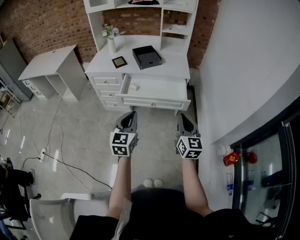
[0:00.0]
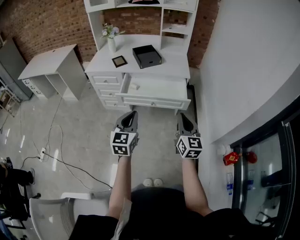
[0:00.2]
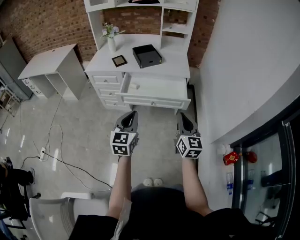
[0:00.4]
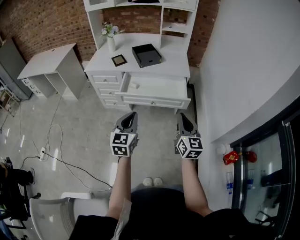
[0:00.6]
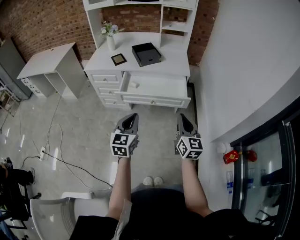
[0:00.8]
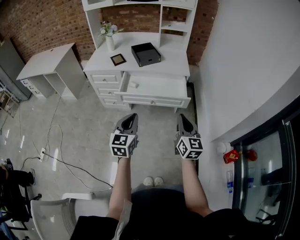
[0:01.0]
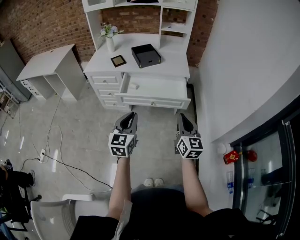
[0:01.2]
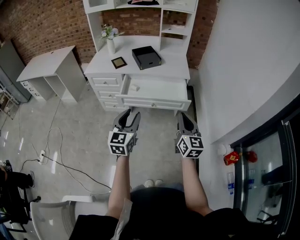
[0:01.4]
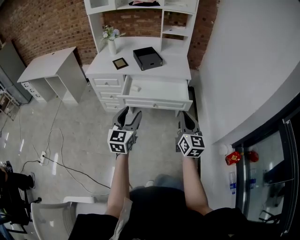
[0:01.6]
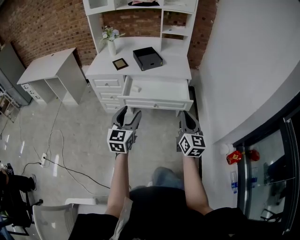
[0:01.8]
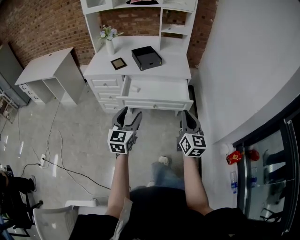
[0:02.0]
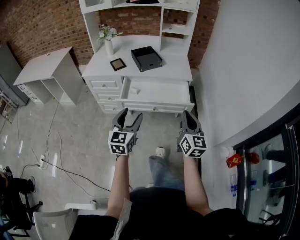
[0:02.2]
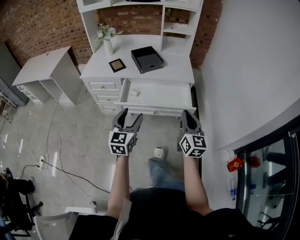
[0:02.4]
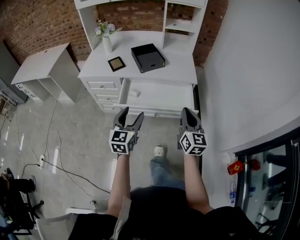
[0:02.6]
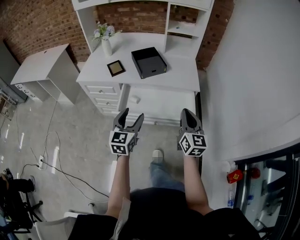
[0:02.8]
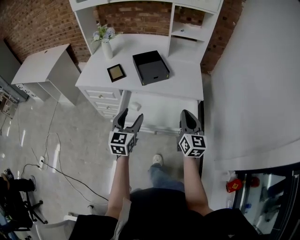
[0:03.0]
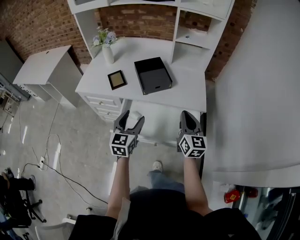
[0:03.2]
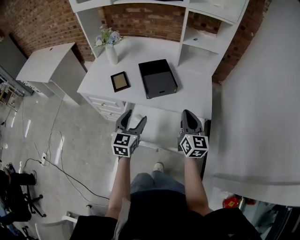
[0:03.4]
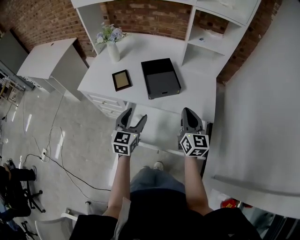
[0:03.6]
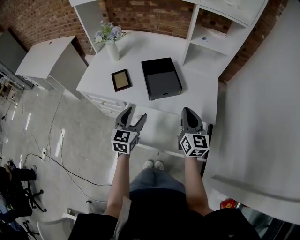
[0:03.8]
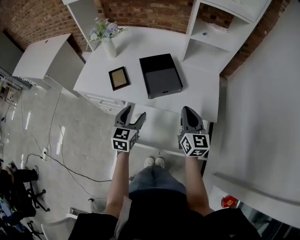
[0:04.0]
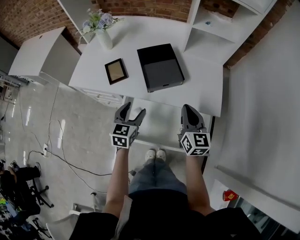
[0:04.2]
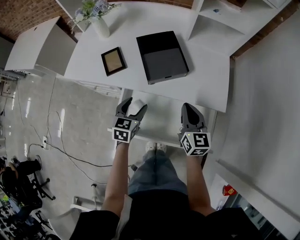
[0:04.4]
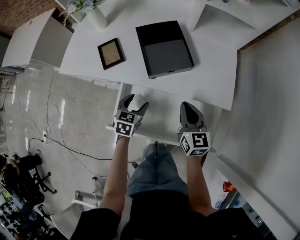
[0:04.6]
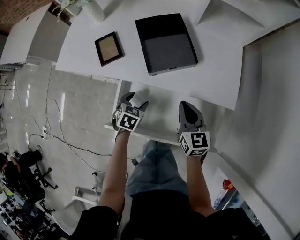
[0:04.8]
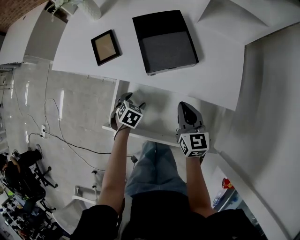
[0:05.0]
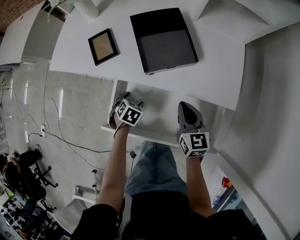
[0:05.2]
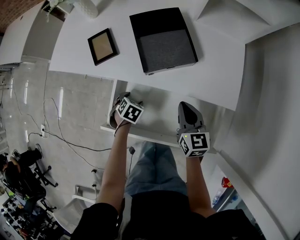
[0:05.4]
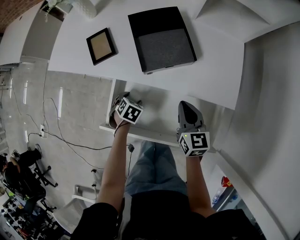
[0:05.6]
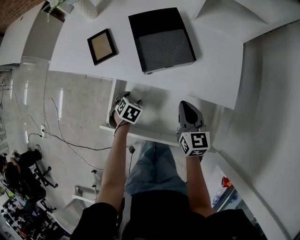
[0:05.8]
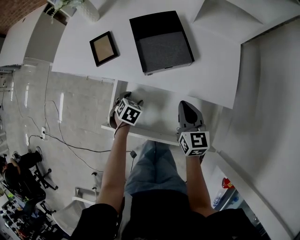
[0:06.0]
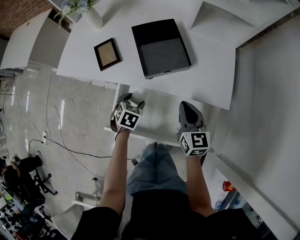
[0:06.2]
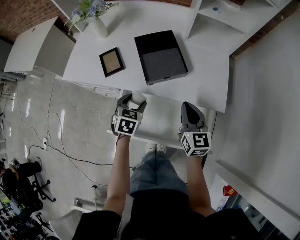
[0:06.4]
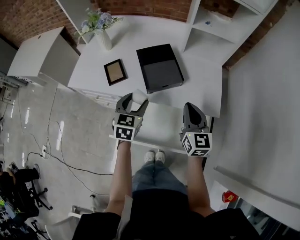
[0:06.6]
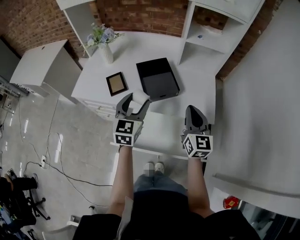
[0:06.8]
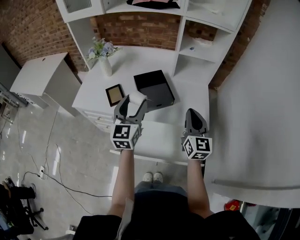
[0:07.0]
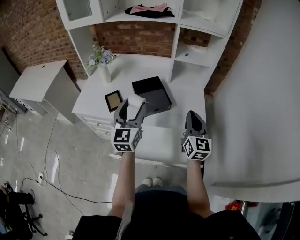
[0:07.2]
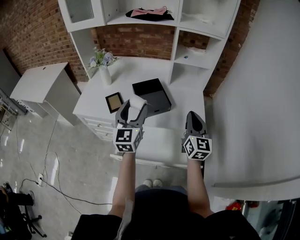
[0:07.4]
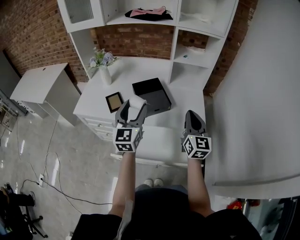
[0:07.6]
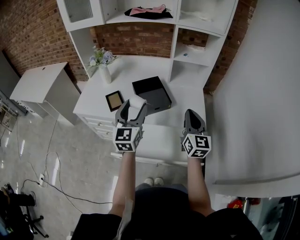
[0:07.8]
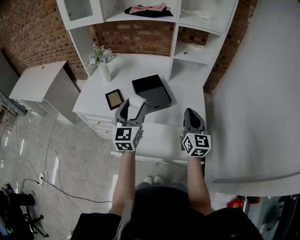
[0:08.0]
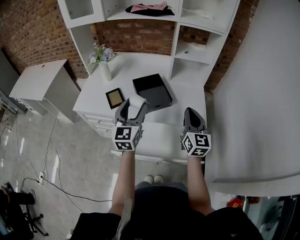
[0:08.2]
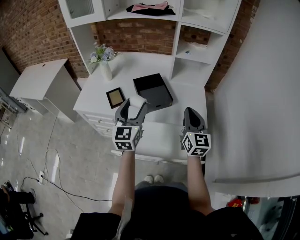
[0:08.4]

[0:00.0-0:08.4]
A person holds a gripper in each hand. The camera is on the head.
0:00.0 to 0:01.4: The left gripper opens up.
0:01.4 to 0:02.8: The grippers both shift forward by some 20 cm. The left gripper opens up.
0:02.8 to 0:04.2: Both grippers move forward, about 25 cm.
0:04.2 to 0:05.6: The right gripper shifts about 15 cm downward, while the left gripper goes approximately 25 cm downward, and points its fingers roughly 50 degrees further downward.
0:05.6 to 0:07.0: The right gripper travels upward by roughly 25 cm, and swivels roughly 30 degrees; the left gripper shifts some 40 cm upward, and points its fingers roughly 70 degrees further upward.
0:07.0 to 0:08.4: The grippers make only small movements.

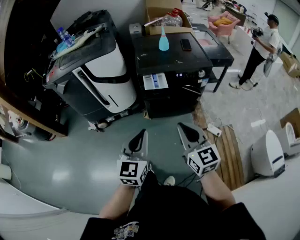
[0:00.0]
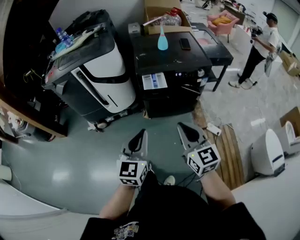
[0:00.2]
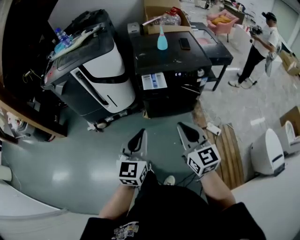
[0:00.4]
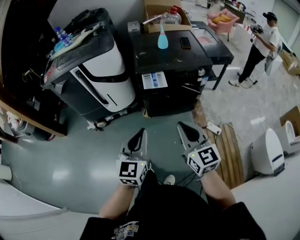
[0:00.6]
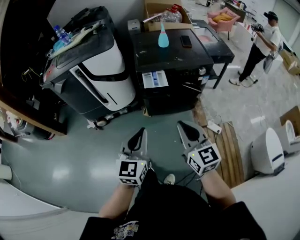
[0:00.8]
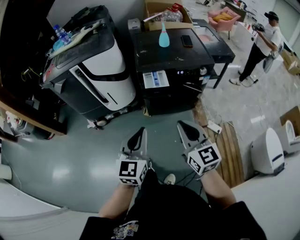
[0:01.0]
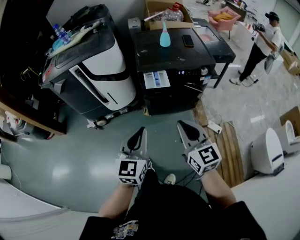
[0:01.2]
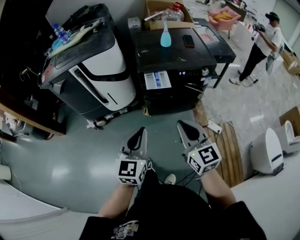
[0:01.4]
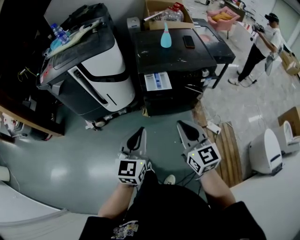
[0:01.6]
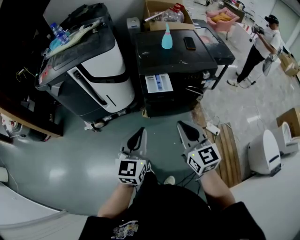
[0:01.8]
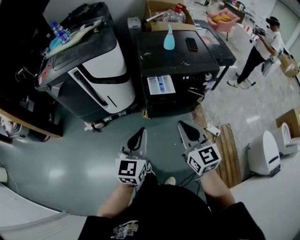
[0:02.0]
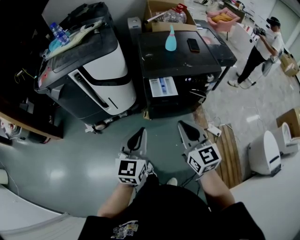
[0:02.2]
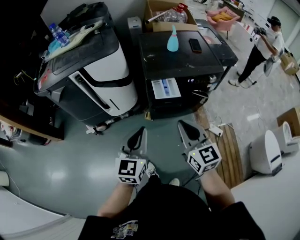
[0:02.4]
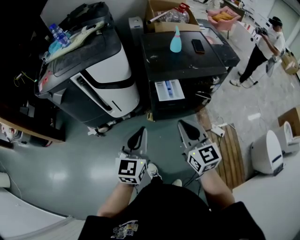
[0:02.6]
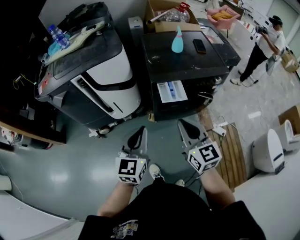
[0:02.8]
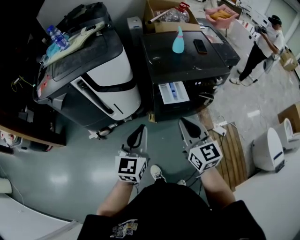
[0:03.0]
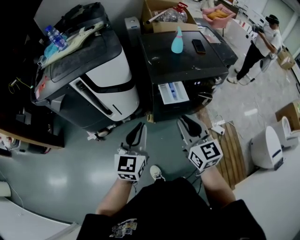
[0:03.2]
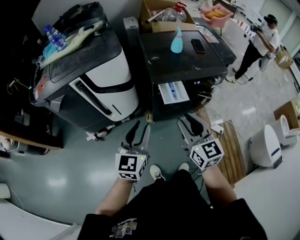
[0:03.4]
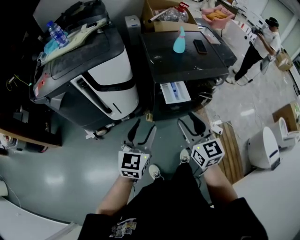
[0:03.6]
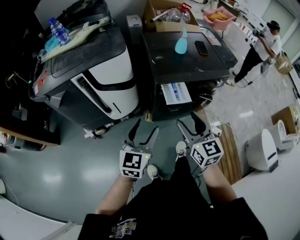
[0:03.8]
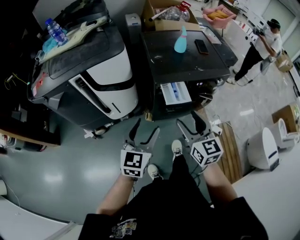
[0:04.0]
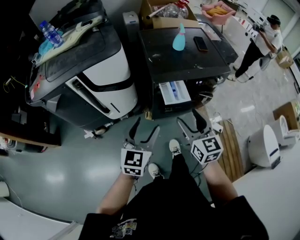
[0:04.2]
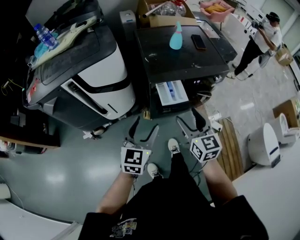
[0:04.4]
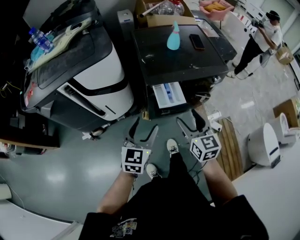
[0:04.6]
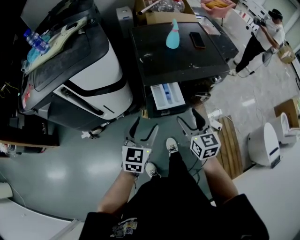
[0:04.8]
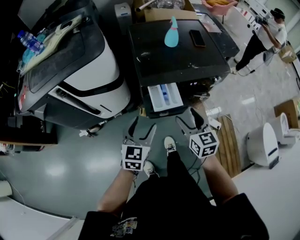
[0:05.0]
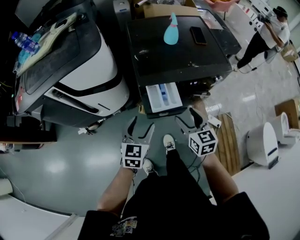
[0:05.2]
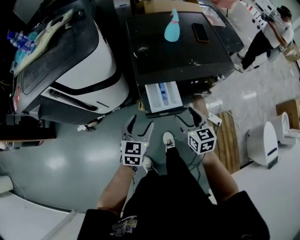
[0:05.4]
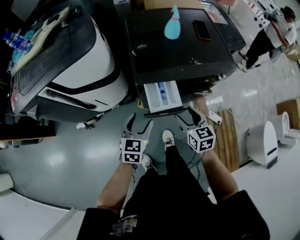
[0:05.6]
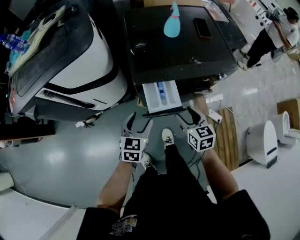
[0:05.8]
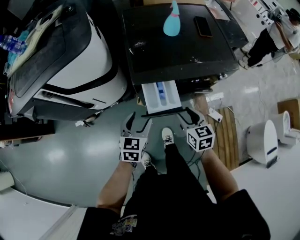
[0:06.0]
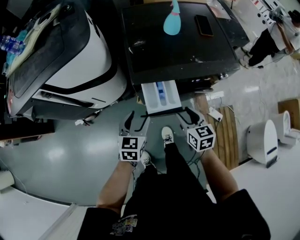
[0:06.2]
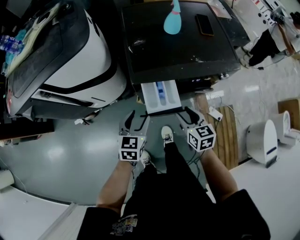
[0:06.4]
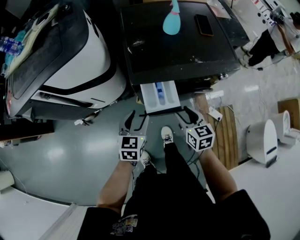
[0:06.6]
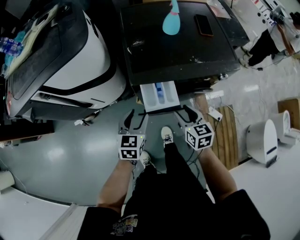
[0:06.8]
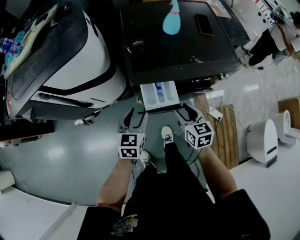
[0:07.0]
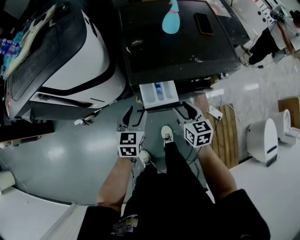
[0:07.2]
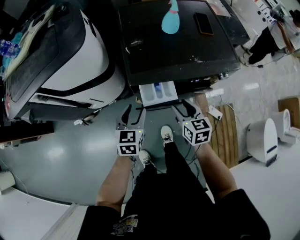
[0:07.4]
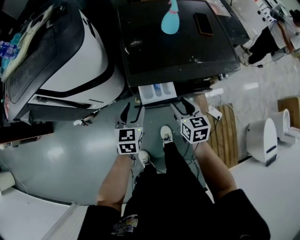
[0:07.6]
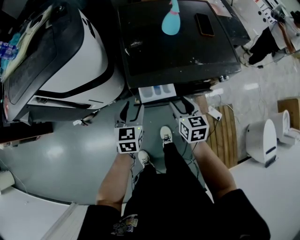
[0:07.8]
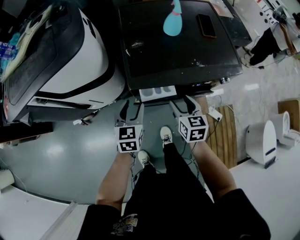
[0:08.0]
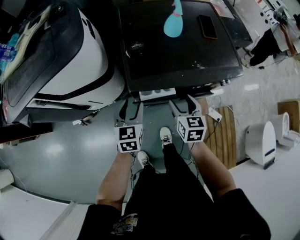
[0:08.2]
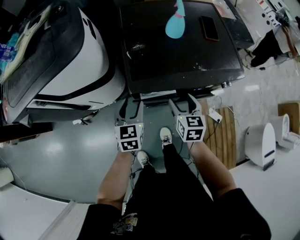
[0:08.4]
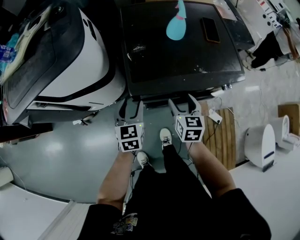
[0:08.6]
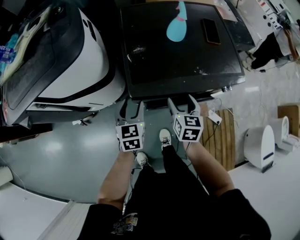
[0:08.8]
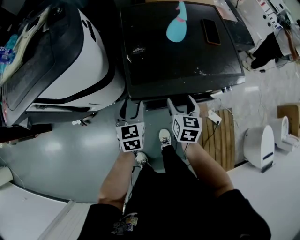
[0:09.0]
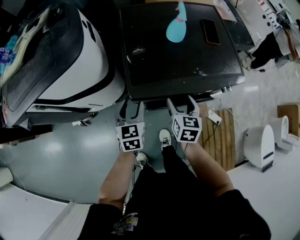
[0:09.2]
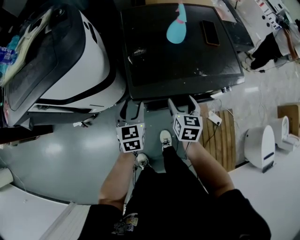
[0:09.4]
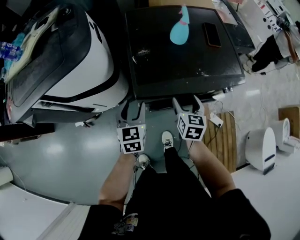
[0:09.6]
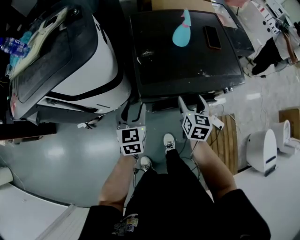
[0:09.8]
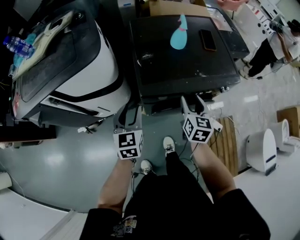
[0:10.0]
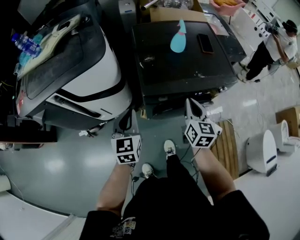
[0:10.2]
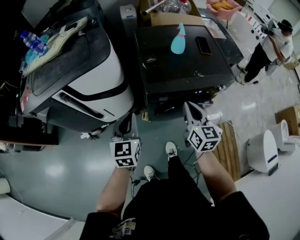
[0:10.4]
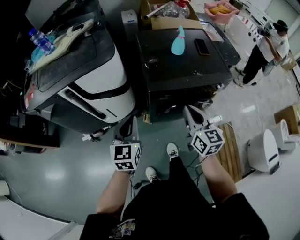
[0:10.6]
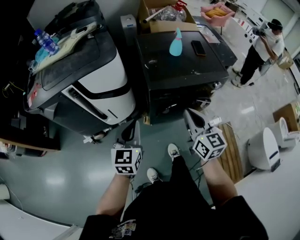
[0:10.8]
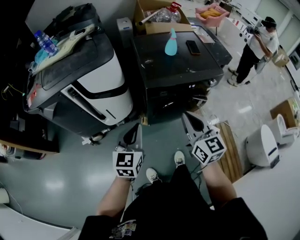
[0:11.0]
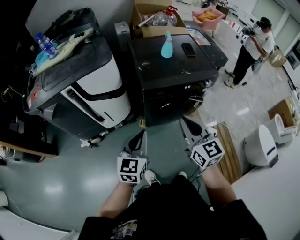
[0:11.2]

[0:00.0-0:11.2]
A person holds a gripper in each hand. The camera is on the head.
0:00.0 to 0:01.6: Both grippers travel together forward, about 5 cm.
0:01.6 to 0:03.2: The grippers both shift forward and to the left by some 20 cm.
0:03.2 to 0:04.8: The two grippers go approximately 15 cm forward, downward and to the right. The left gripper opens up; the right gripper opens.
0:04.8 to 0:06.4: The two grippers go roughly 15 cm downward and forward.
0:06.4 to 0:08.0: The two grippers go some 10 cm forward.
0:08.0 to 0:09.6: The right gripper shifts by roughly 5 cm.
0:09.6 to 0:11.2: The two grippers go approximately 35 cm backward and upward. The left gripper changes its angle by roughly 20 degrees, and closes its fingers, while the right gripper swivels roughly 30 degrees, and closes.

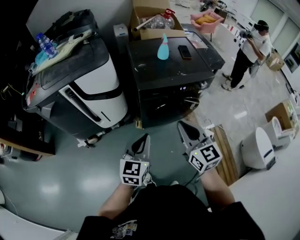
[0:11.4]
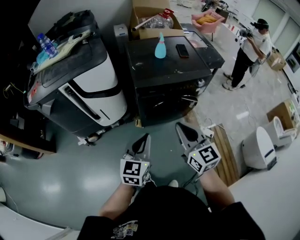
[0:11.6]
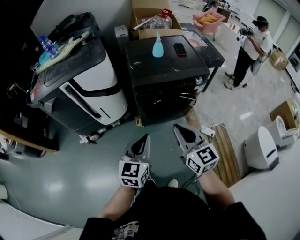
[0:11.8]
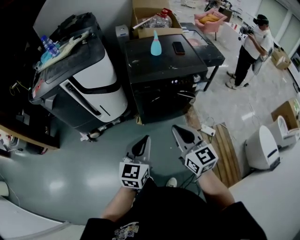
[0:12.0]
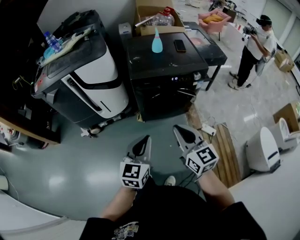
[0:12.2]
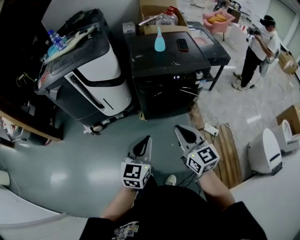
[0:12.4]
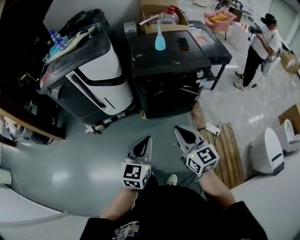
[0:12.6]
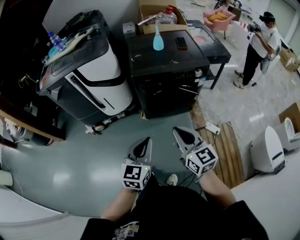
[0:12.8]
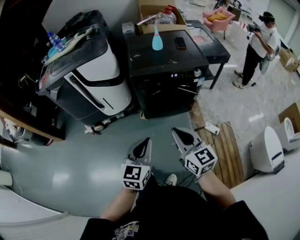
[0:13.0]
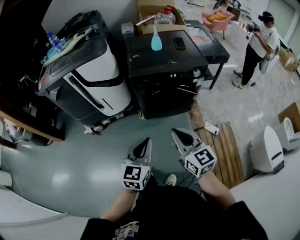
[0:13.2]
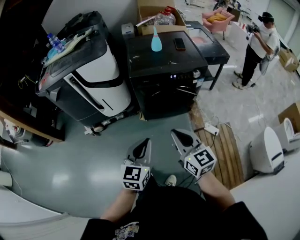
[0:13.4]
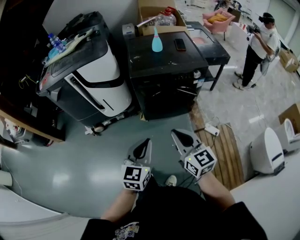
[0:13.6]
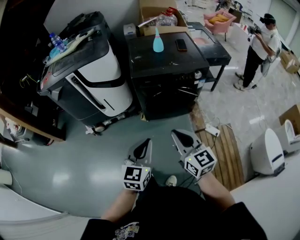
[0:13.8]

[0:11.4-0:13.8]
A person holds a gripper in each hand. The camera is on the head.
0:11.4 to 0:12.6: Both grippers move backward and to the right, some 20 cm.
0:12.6 to 0:13.8: The grippers make only small movements.

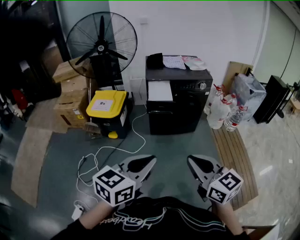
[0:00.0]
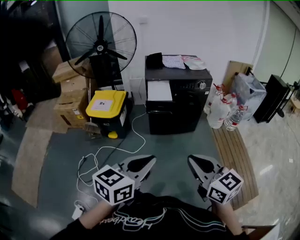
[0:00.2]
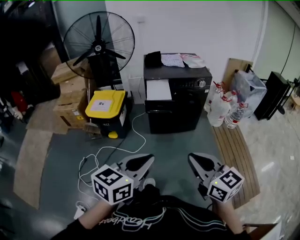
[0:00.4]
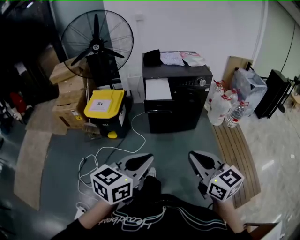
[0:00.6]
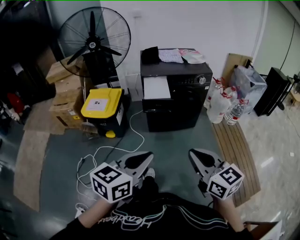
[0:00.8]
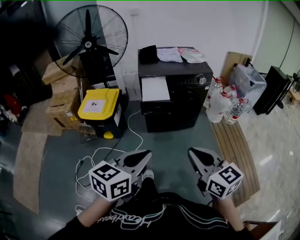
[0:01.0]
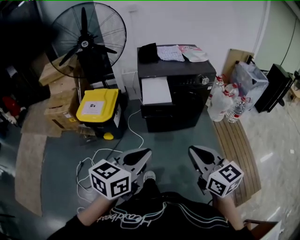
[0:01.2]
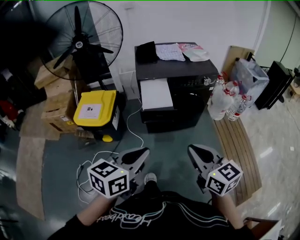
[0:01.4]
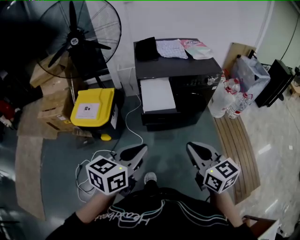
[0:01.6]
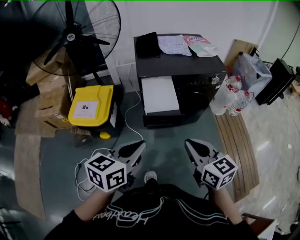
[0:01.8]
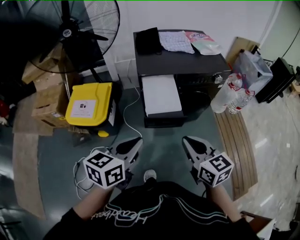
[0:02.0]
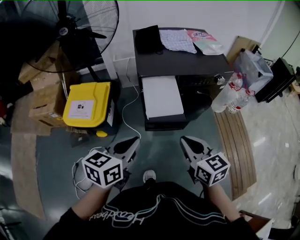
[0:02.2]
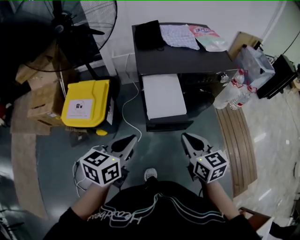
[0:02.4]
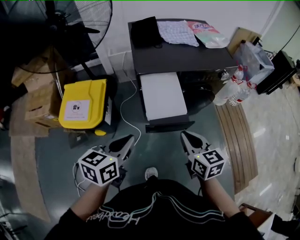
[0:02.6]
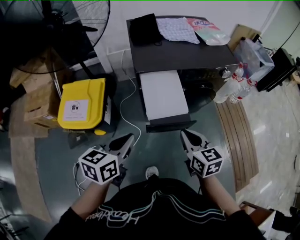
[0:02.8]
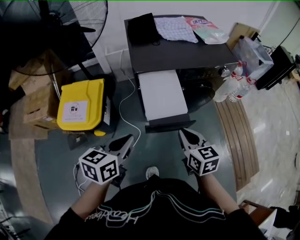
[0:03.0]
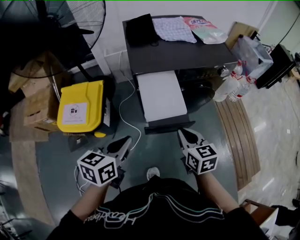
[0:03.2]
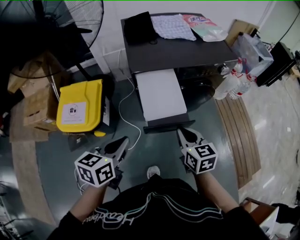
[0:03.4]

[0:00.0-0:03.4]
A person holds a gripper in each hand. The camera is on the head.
0:00.0 to 0:01.6: The two grippers go roughly 30 cm forward.
0:01.6 to 0:03.4: The left gripper goes some 25 cm forward, downward and to the left; the right gripper is displaced forward and downward by roughly 25 cm, and swivels roughly 20 degrees.
